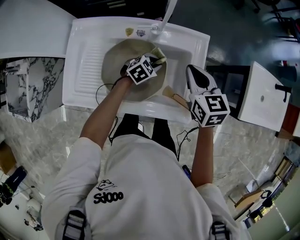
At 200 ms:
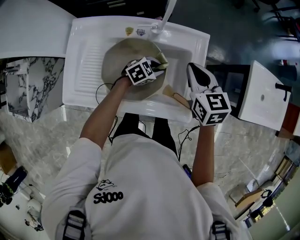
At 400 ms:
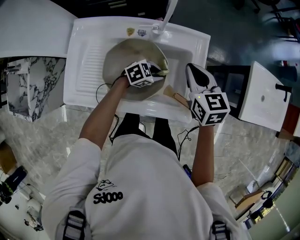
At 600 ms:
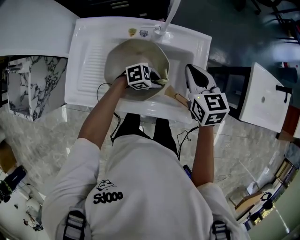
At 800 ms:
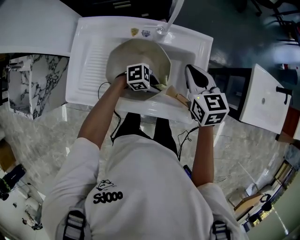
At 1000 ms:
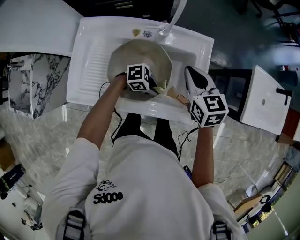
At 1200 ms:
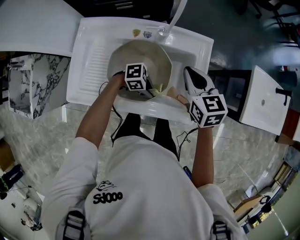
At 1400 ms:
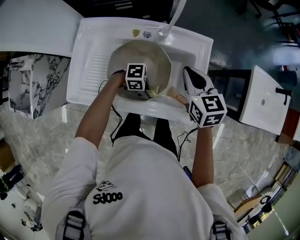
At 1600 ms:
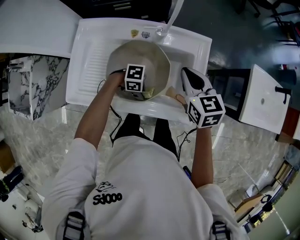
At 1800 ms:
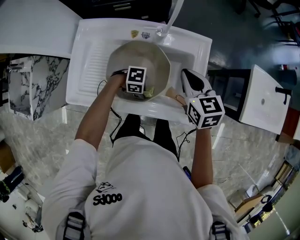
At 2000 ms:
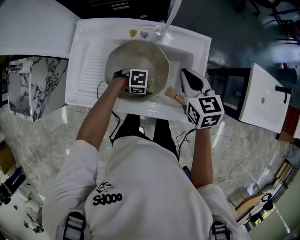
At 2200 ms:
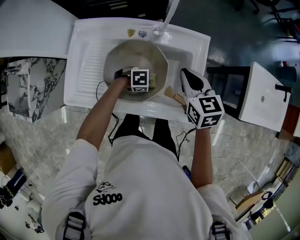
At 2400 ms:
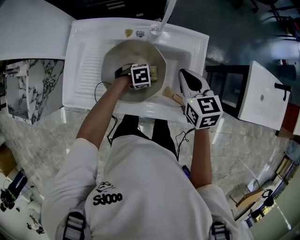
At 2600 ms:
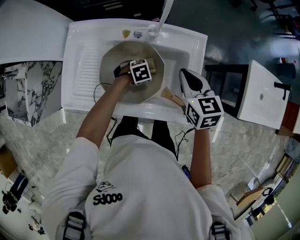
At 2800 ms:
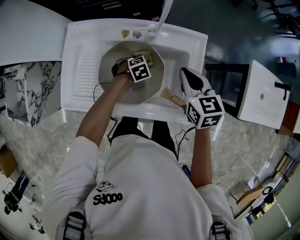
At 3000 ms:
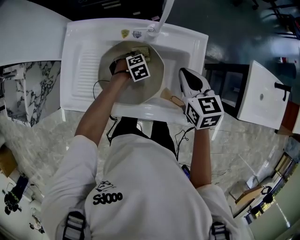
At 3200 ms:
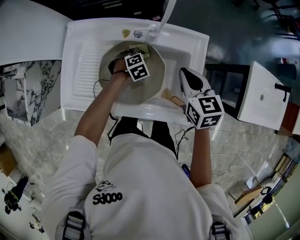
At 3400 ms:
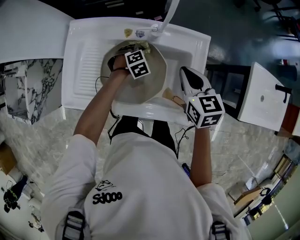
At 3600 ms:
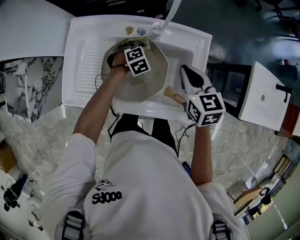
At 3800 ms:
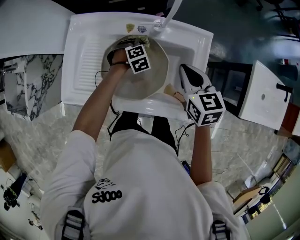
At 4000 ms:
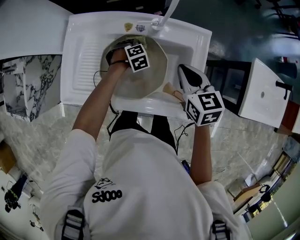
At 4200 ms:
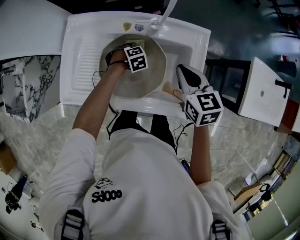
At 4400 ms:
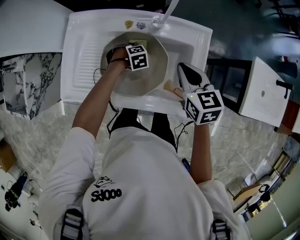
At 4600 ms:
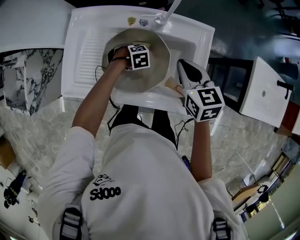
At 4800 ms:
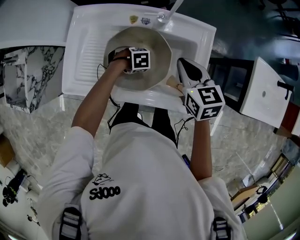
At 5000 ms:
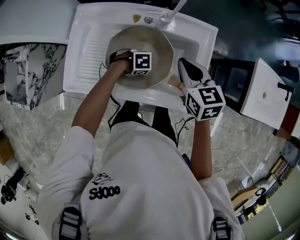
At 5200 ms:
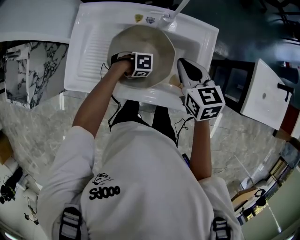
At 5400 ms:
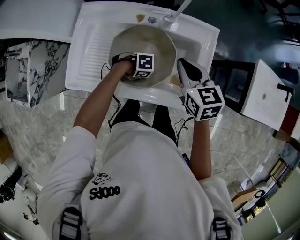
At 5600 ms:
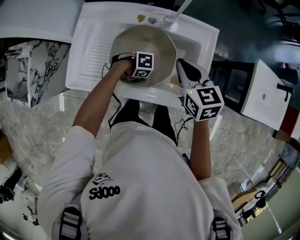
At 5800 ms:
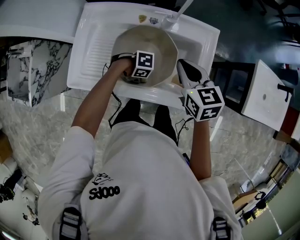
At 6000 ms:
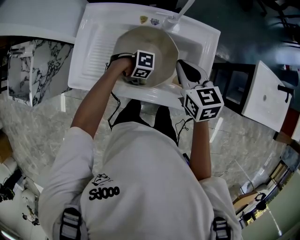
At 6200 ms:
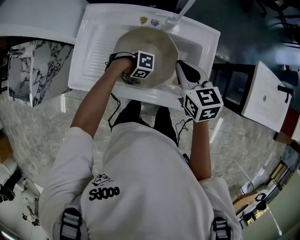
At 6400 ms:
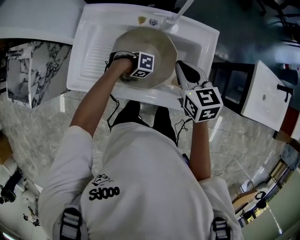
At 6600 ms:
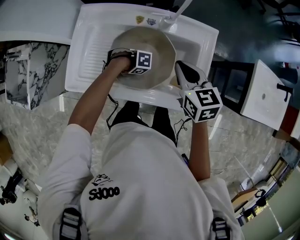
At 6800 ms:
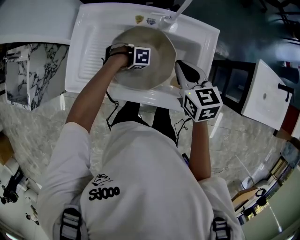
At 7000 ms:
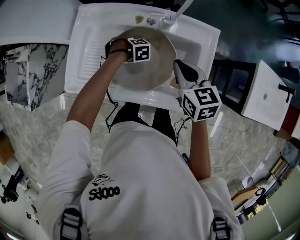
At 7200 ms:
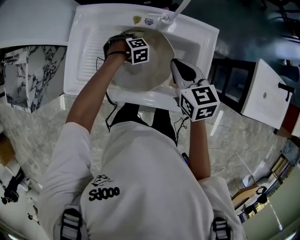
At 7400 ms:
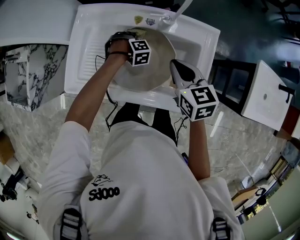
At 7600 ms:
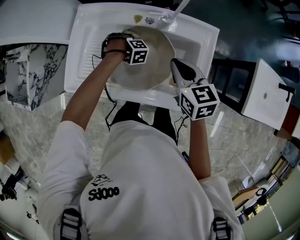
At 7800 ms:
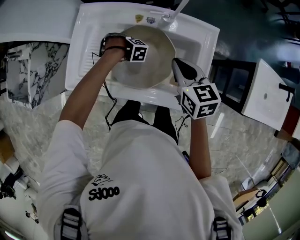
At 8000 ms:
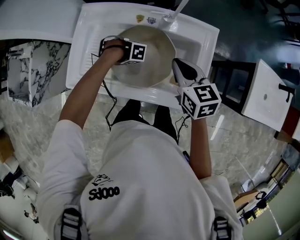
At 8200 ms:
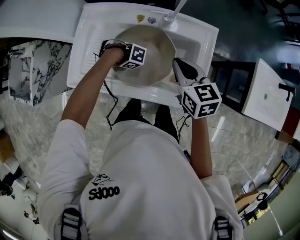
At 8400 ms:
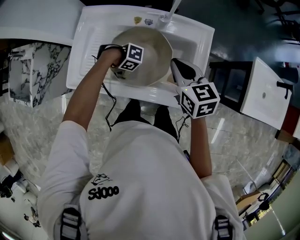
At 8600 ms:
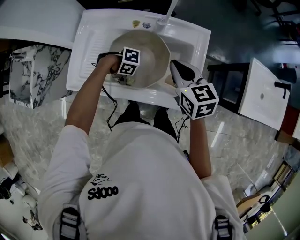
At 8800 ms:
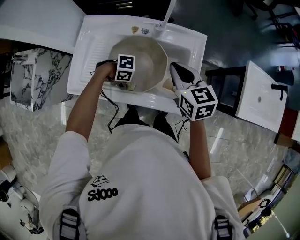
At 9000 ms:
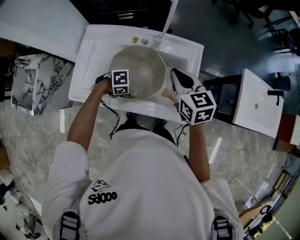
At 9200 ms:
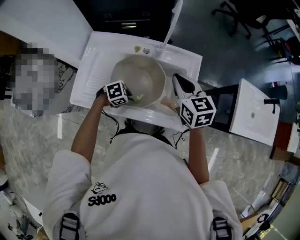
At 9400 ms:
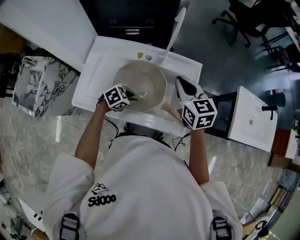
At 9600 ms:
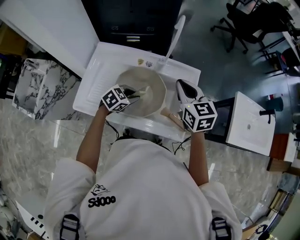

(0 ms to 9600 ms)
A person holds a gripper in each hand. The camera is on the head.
0 ms - 1600 ms: The left gripper changes place by about 20 cm, and rotates approximately 60 degrees.
1600 ms - 3200 ms: The left gripper ends up approximately 20 cm from where it was, and points its fingers some 30 degrees further downward.
3200 ms - 4800 ms: The left gripper changes place by roughly 10 cm, and swivels roughly 30 degrees.
4800 ms - 6400 ms: The left gripper moves about 10 cm, and turns by approximately 20 degrees.
6400 ms - 8000 ms: The left gripper changes its angle by about 20 degrees.
8000 ms - 9600 ms: Both grippers travel together upward, approximately 10 cm. The left gripper changes its angle by approximately 80 degrees.

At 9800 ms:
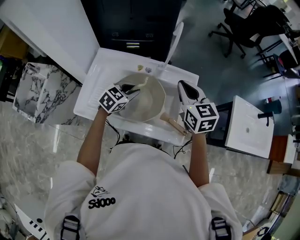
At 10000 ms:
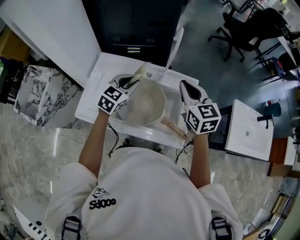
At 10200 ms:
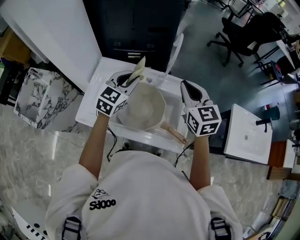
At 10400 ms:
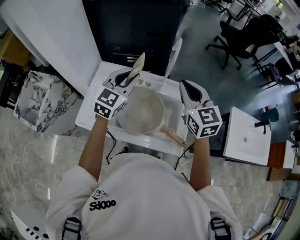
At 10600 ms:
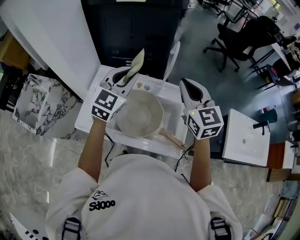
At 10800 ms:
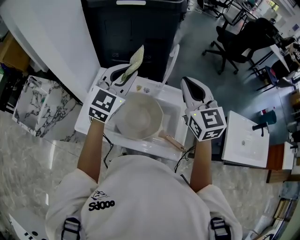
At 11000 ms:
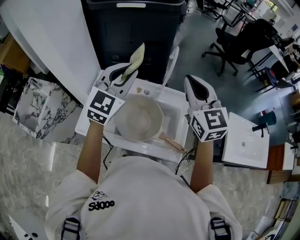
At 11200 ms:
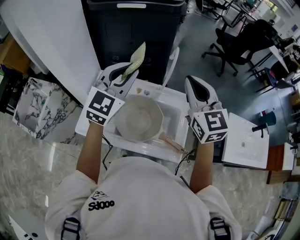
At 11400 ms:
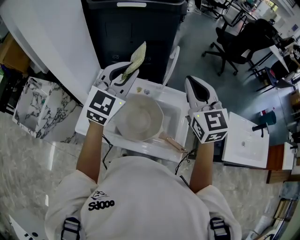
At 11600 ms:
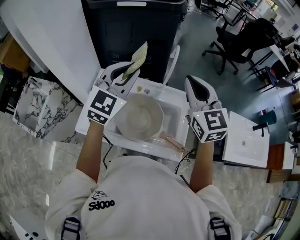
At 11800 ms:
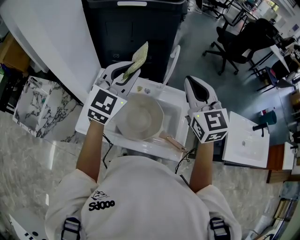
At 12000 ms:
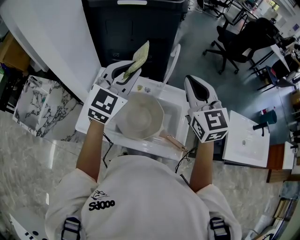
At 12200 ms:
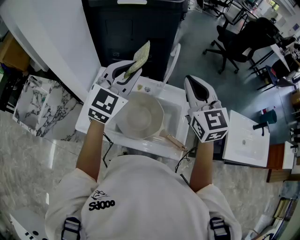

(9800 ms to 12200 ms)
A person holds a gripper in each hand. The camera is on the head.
9800 ms - 11000 ms: The right gripper moves upward, roughly 15 cm, and changes its angle by some 20 degrees; the left gripper shifts about 30 cm upward, and points its fingers roughly 30 degrees further upward.
11000 ms - 12200 ms: Both grippers stay put.

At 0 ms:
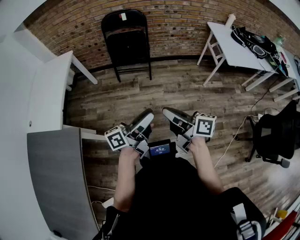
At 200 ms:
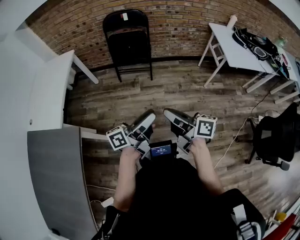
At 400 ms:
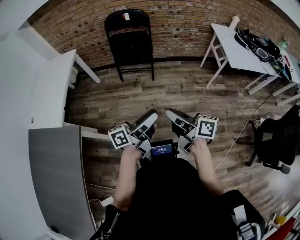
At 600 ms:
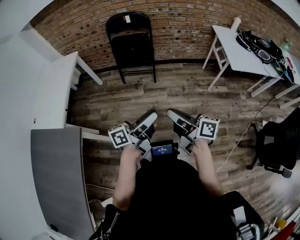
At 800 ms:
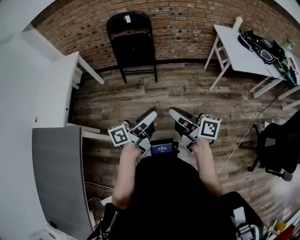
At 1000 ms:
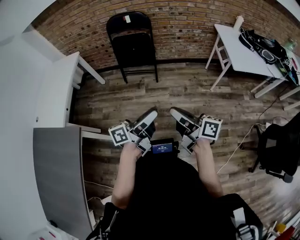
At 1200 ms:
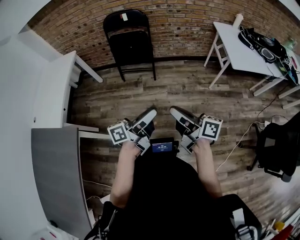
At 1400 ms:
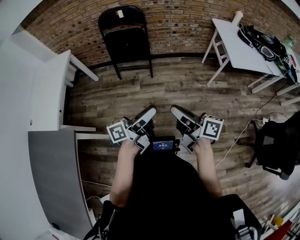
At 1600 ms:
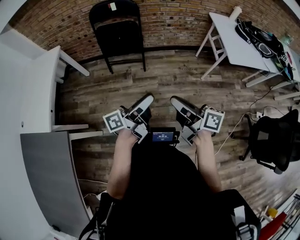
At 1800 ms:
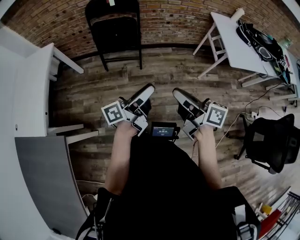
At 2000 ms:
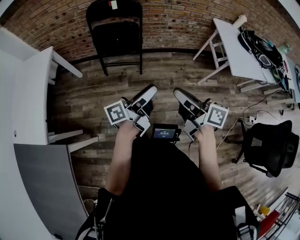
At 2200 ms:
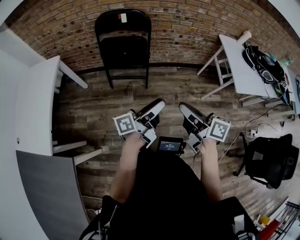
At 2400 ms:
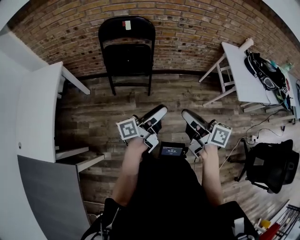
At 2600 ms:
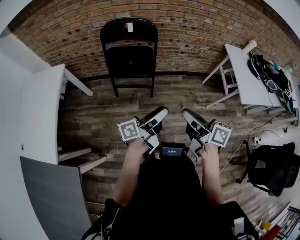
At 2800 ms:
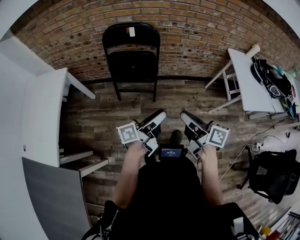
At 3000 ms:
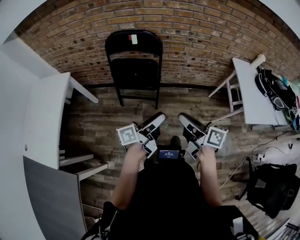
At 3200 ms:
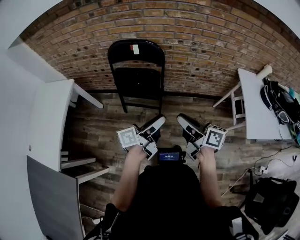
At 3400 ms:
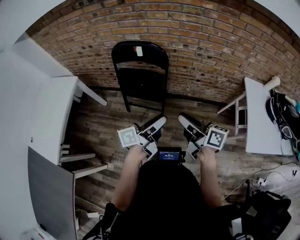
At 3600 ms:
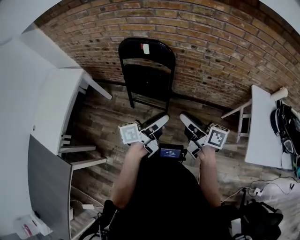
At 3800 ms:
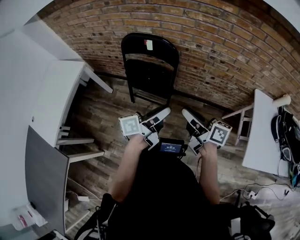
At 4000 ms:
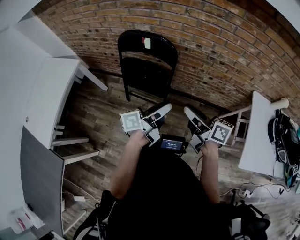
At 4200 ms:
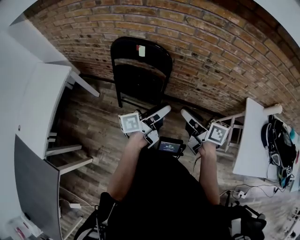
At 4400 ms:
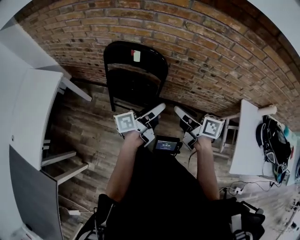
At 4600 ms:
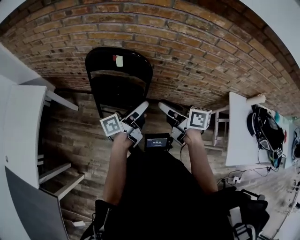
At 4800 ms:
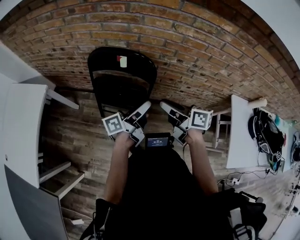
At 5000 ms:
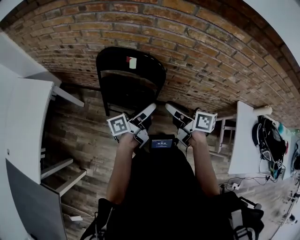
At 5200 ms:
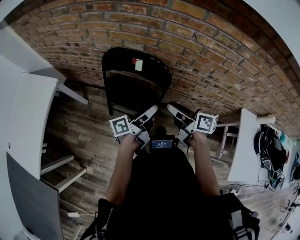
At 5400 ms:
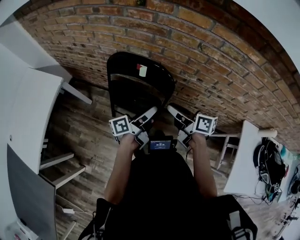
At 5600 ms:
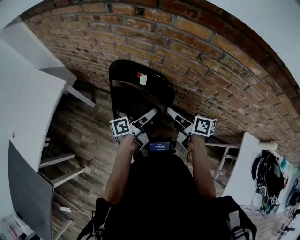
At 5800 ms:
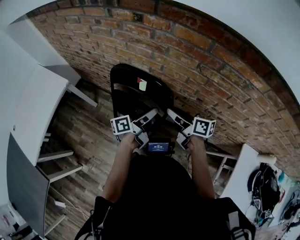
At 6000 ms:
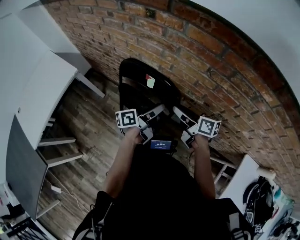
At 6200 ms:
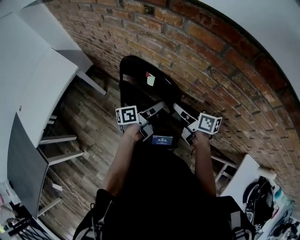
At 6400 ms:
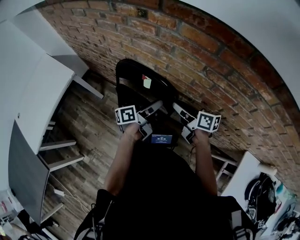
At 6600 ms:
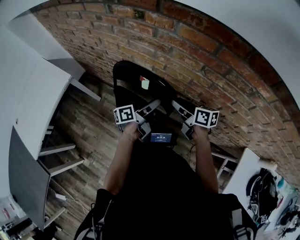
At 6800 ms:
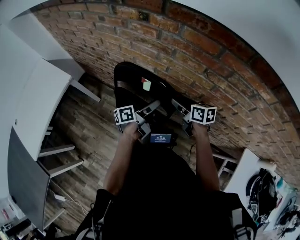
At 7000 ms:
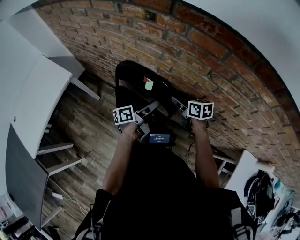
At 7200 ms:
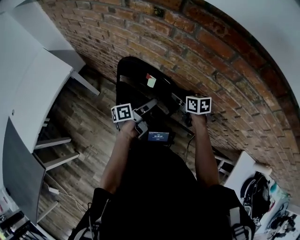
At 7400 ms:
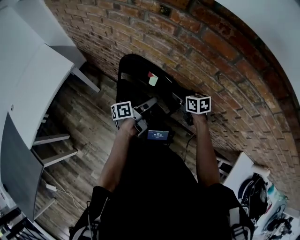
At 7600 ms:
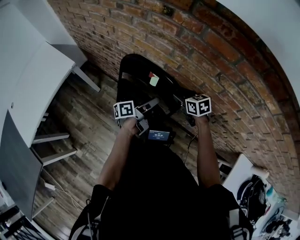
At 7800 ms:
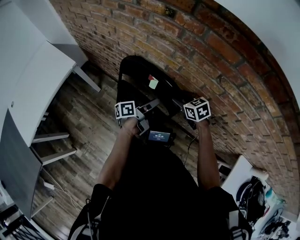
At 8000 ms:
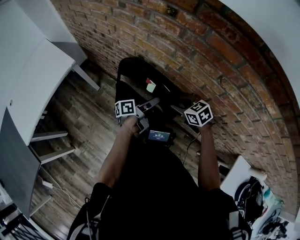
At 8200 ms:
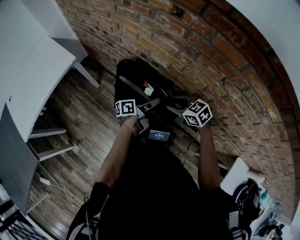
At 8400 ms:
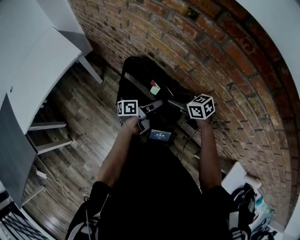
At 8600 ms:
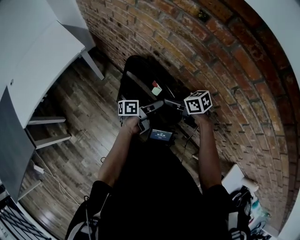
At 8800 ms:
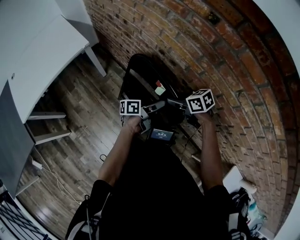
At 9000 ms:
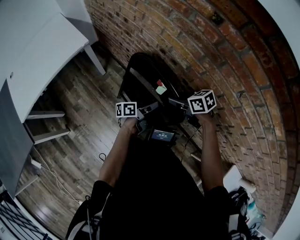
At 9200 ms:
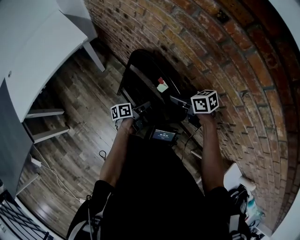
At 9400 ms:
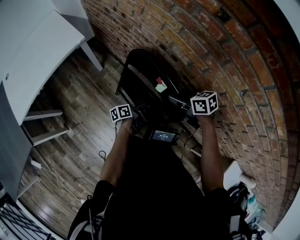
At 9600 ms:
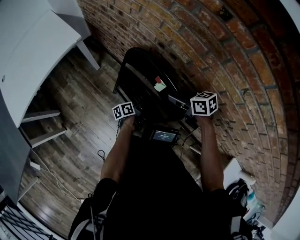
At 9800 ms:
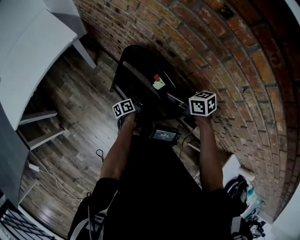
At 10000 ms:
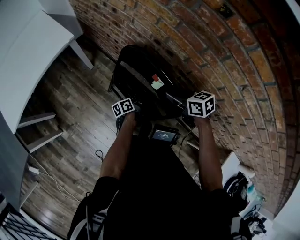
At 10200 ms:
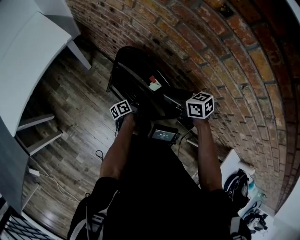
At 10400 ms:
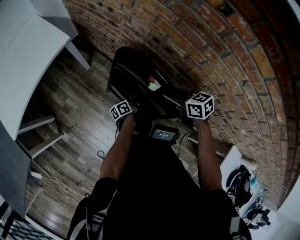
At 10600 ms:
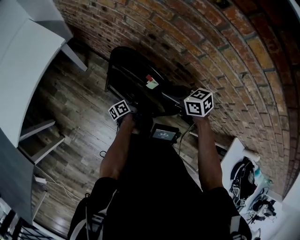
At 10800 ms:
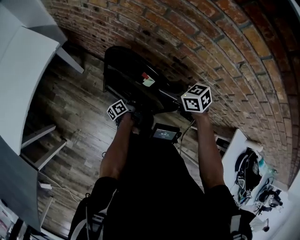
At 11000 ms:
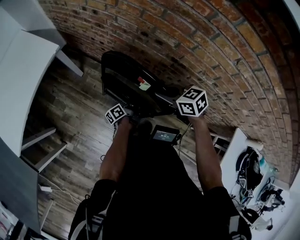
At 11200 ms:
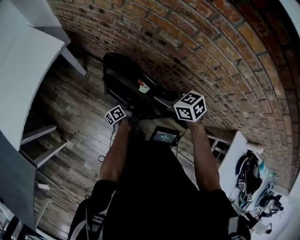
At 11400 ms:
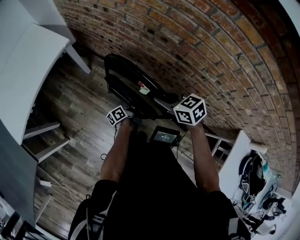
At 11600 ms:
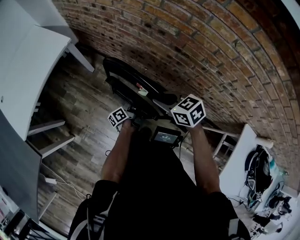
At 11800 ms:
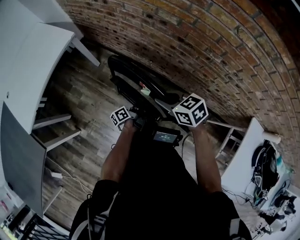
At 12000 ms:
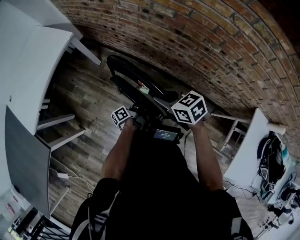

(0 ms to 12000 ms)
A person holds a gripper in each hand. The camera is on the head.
0 ms - 1600 ms: The right gripper moves roughly 15 cm.
1600 ms - 3000 ms: The right gripper moves roughly 30 cm.
3000 ms - 4400 ms: The right gripper changes place by about 30 cm.
4400 ms - 6000 ms: The right gripper shifts by some 20 cm.
6000 ms - 7600 ms: The right gripper moves approximately 10 cm, and swivels roughly 50 degrees.
7600 ms - 9000 ms: The right gripper changes place by some 10 cm, and turns by roughly 30 degrees.
10400 ms - 12000 ms: The right gripper ends up roughly 20 cm from where it was.
